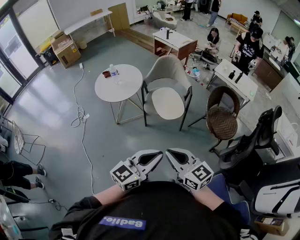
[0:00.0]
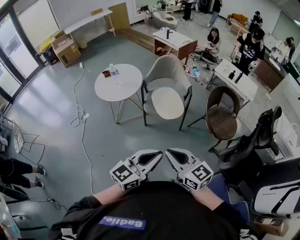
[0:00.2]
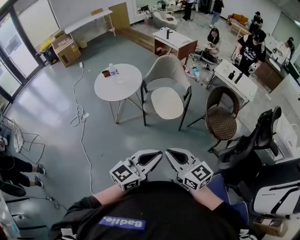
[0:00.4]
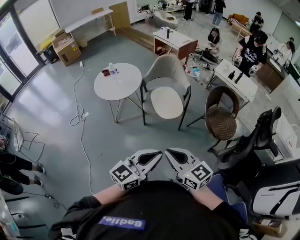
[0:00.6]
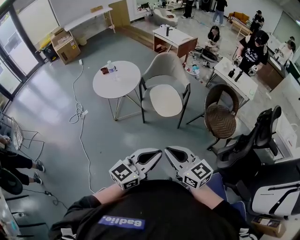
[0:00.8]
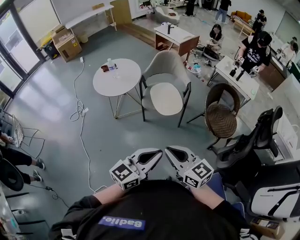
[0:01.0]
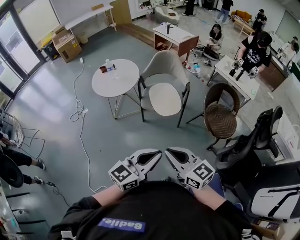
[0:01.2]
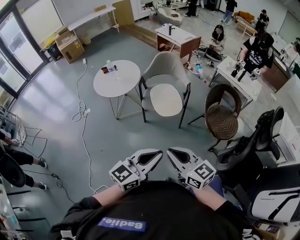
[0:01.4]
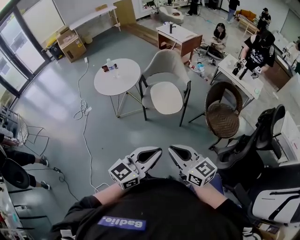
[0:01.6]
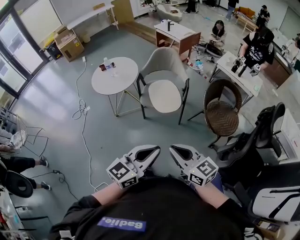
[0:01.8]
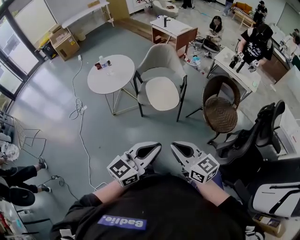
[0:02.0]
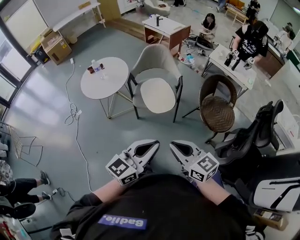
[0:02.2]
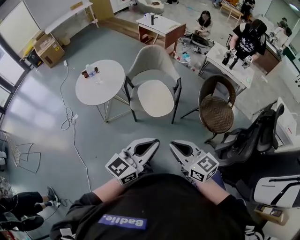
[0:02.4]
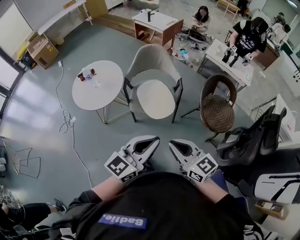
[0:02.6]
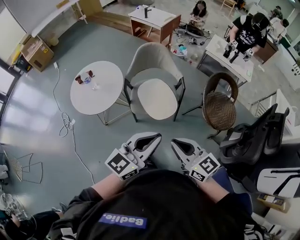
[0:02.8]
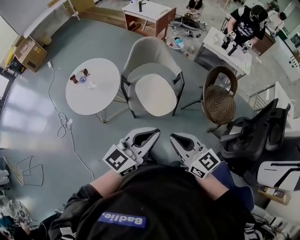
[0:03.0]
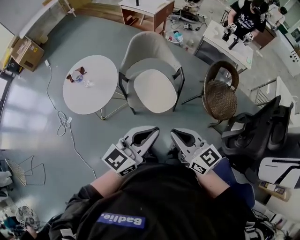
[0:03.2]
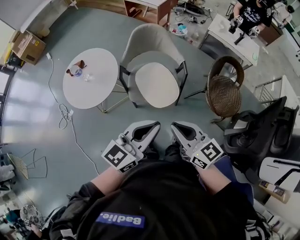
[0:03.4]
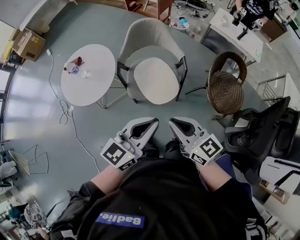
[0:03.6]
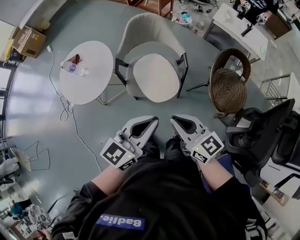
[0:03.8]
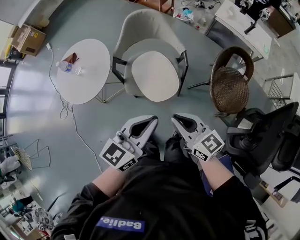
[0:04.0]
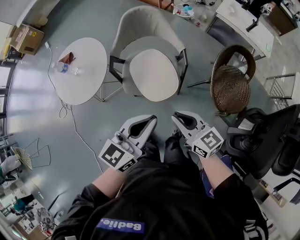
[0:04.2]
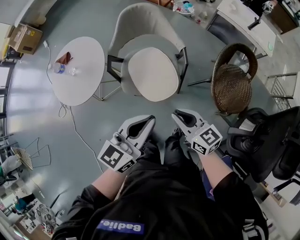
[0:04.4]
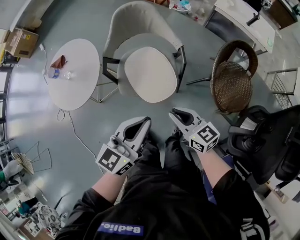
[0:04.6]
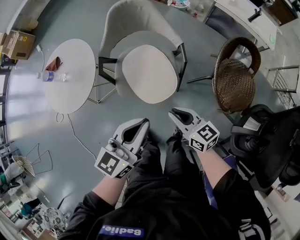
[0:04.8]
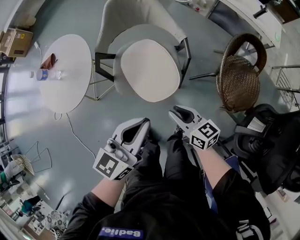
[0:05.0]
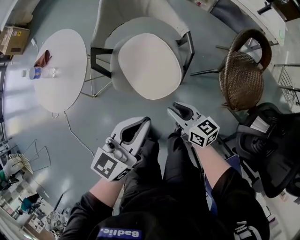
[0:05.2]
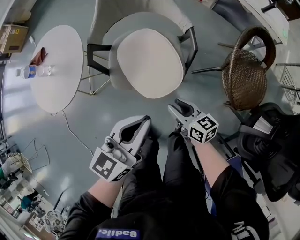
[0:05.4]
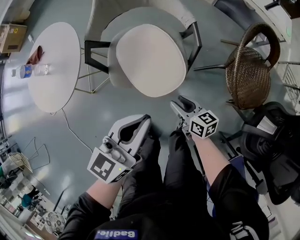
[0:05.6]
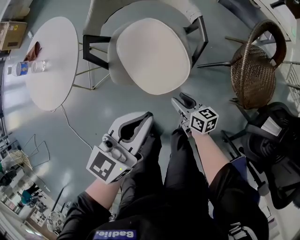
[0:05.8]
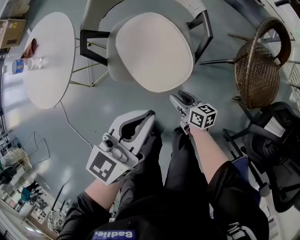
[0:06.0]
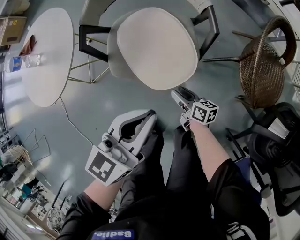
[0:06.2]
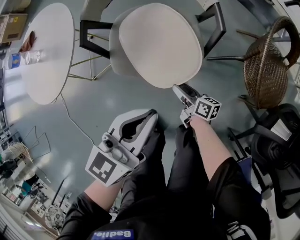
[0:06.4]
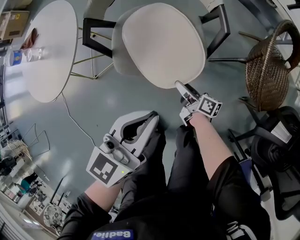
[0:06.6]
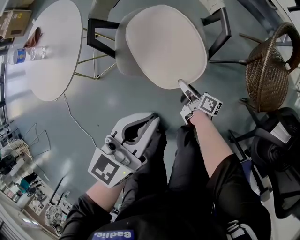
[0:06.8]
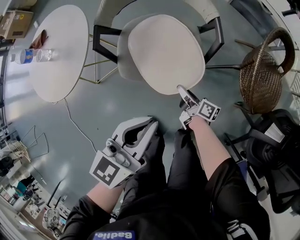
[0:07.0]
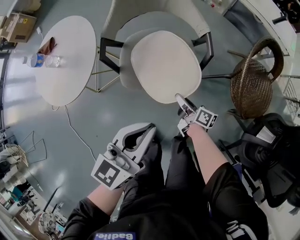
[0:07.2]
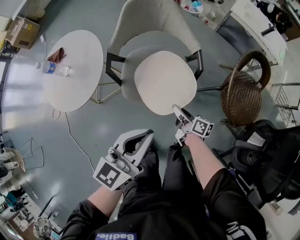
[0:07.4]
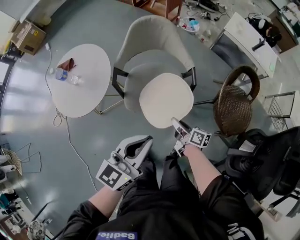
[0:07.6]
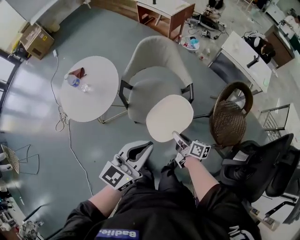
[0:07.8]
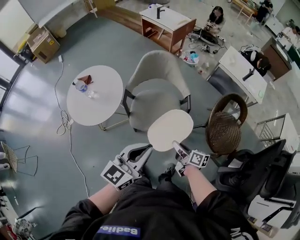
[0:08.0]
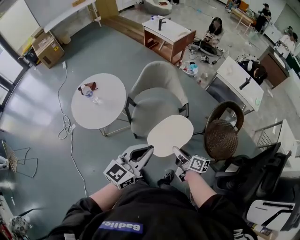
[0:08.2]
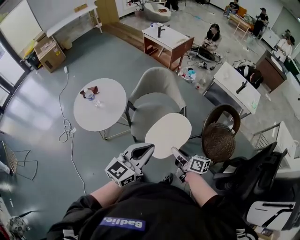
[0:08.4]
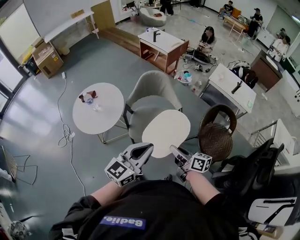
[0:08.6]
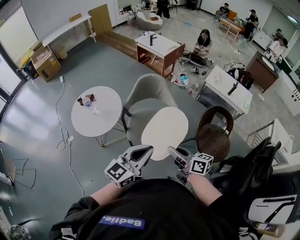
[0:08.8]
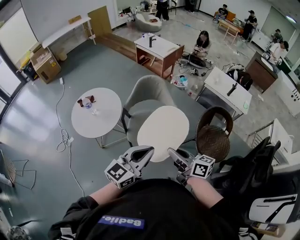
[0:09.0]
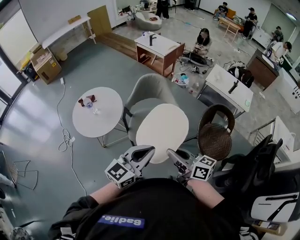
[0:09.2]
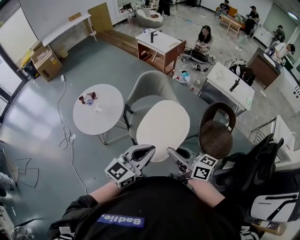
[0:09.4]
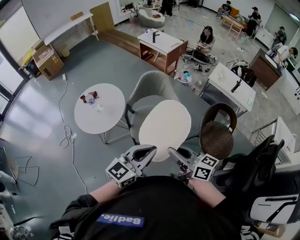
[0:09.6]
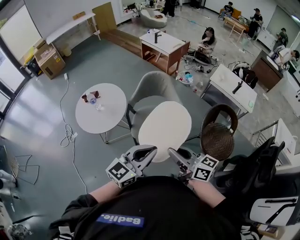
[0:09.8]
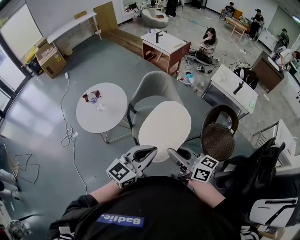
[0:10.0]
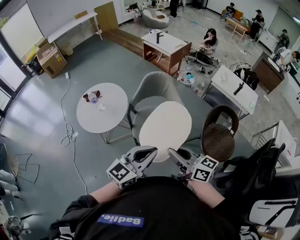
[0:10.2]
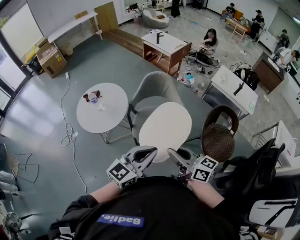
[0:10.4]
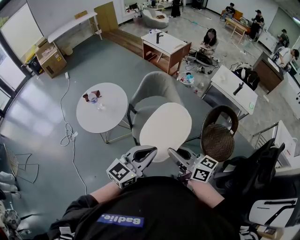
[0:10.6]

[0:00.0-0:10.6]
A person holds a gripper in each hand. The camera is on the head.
0:00.0 to 0:01.6: Both grippers travel together to the right, approximately 10 cm.
0:01.6 to 0:03.0: The two grippers go some 25 cm forward.
0:03.0 to 0:04.6: The two grippers go about 25 cm downward, forward and to the right.
0:04.6 to 0:06.0: The left gripper goes roughly 15 cm downward, while the right gripper travels downward by some 35 cm, rotates approximately 30 degrees, and opens its fingers.
0:06.0 to 0:07.6: Both grippers move upward, approximately 15 cm. The right gripper closes its fingers.
0:07.6 to 0:09.0: The left gripper goes about 15 cm upward and backward. Meanwhile the right gripper heads upward, covering approximately 35 cm, and rotates roughly 30 degrees.
0:09.0 to 0:10.6: The grippers move only a little.

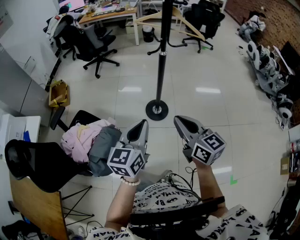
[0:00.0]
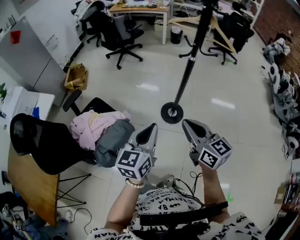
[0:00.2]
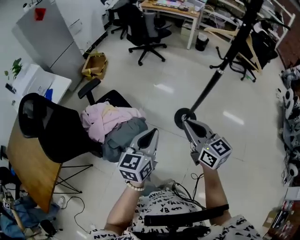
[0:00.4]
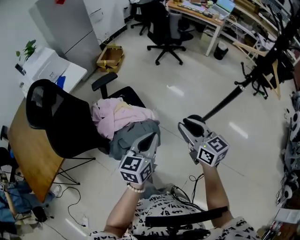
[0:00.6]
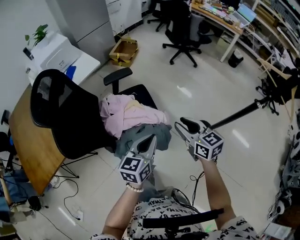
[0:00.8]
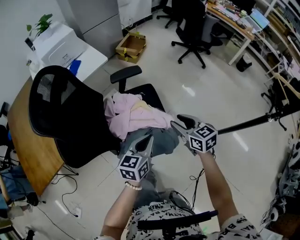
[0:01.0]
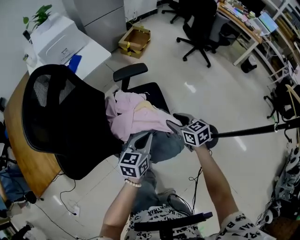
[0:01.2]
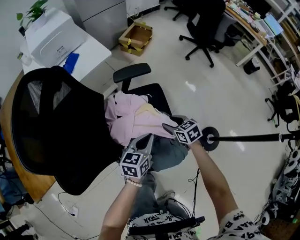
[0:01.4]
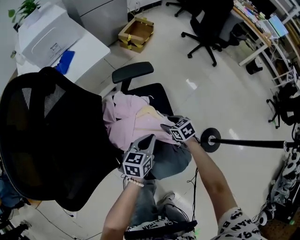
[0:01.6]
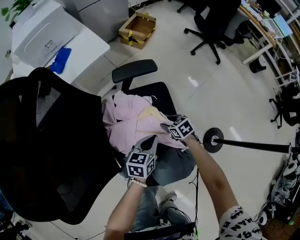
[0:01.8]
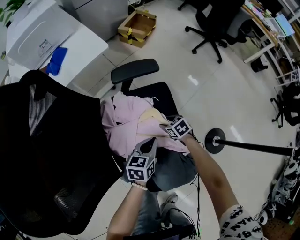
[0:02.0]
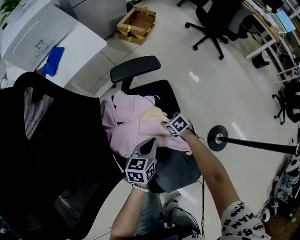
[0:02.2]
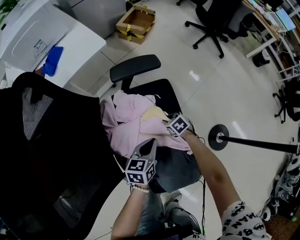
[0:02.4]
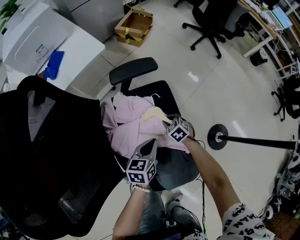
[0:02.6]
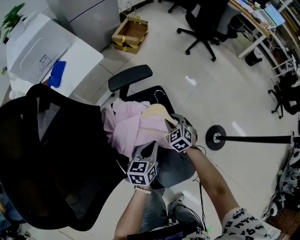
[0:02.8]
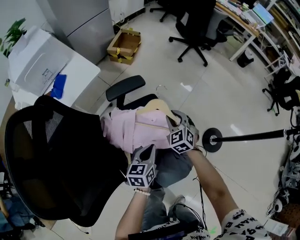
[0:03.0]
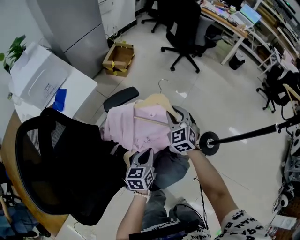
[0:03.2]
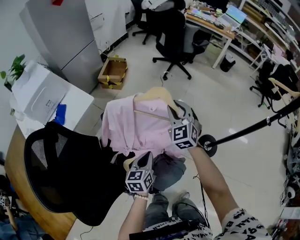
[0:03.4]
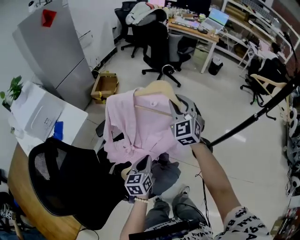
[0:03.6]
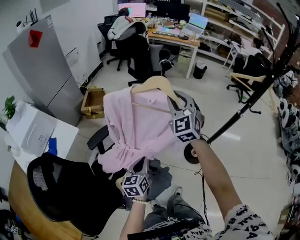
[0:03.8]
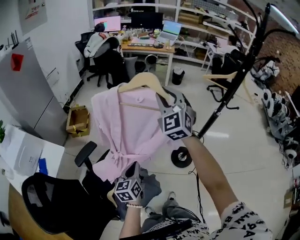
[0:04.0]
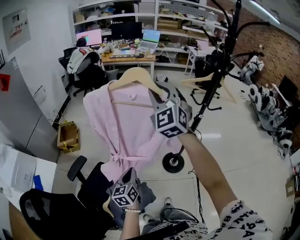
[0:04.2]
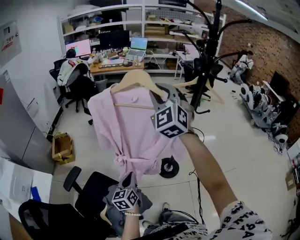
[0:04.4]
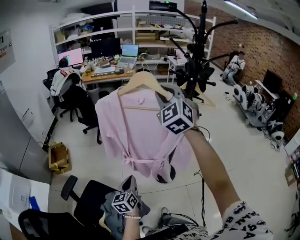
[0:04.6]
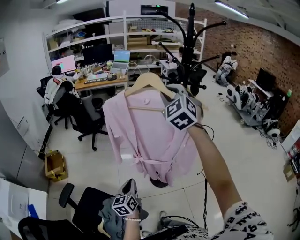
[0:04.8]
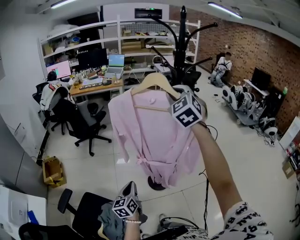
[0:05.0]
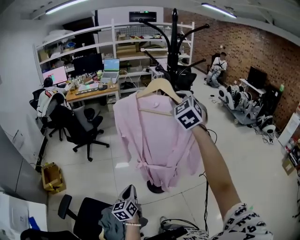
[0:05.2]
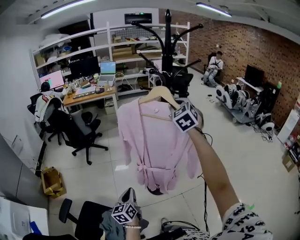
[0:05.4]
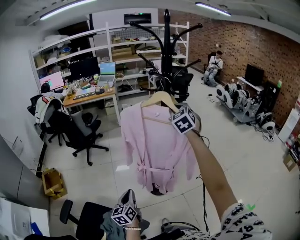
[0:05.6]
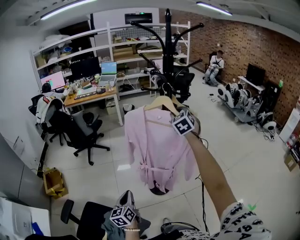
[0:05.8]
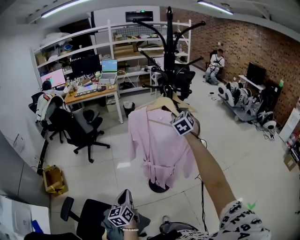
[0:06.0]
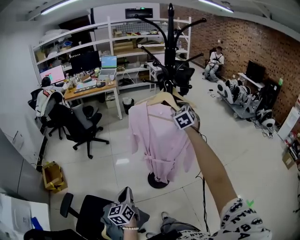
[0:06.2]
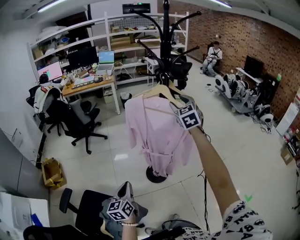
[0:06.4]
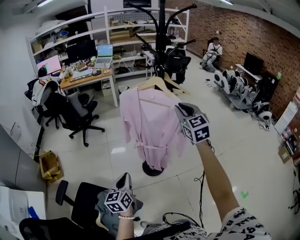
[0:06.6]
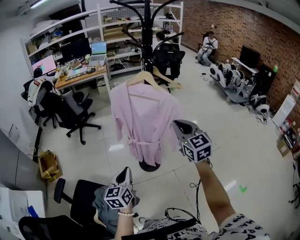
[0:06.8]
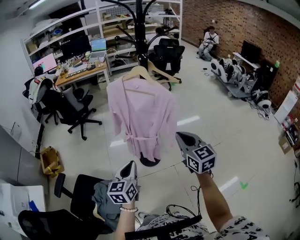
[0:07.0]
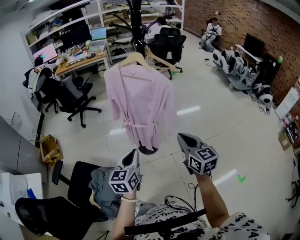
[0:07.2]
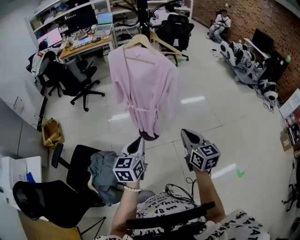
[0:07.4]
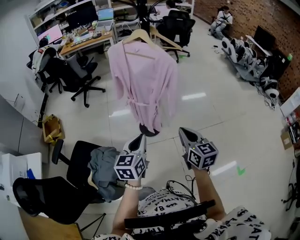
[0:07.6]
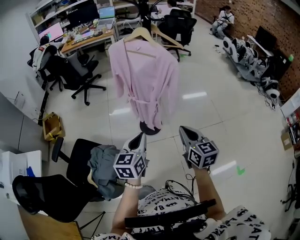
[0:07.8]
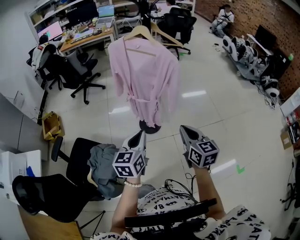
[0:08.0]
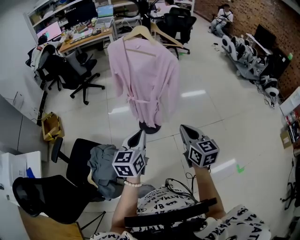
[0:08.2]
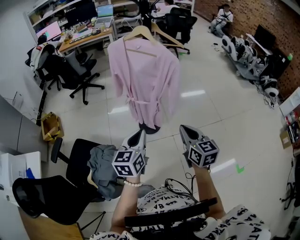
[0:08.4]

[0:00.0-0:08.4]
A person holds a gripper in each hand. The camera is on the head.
0:00.0 to 0:01.4: The two grippers travel together, some 50 cm. The right gripper points its fingers about 40 degrees further downward, and opens; the left gripper changes its angle by some 40 degrees.
0:01.4 to 0:02.8: The right gripper reaches some 25 cm downward, then returns, rotates roughly 30 degrees, and closes up, while the left gripper heads downward, covering roughly 10 cm.
0:02.8 to 0:04.2: The left gripper shifts roughly 25 cm upward, and rotates some 30 degrees. Meanwhile the right gripper shifts some 70 cm upward, and tilts its fingers roughly 50 degrees upward.
0:04.2 to 0:05.6: The left gripper is displaced to the right and forward by about 15 cm; the right gripper is displaced to the right by some 35 cm, and swivels some 40 degrees.
0:05.6 to 0:07.0: The left gripper is displaced to the right, upward and backward by some 15 cm. Meanwhile the right gripper heads backward and downward, covering about 30 cm, changes its angle by roughly 40 degrees, and closes up.
0:07.0 to 0:08.4: The left gripper goes about 5 cm to the right; the right gripper shifts approximately 10 cm downward and backward.

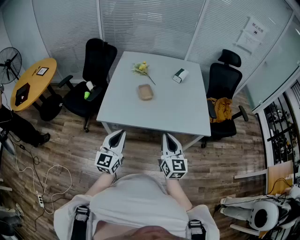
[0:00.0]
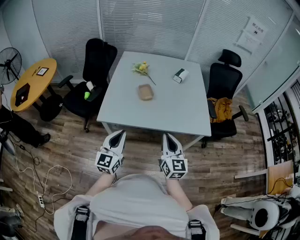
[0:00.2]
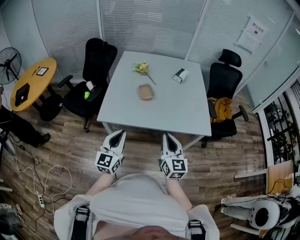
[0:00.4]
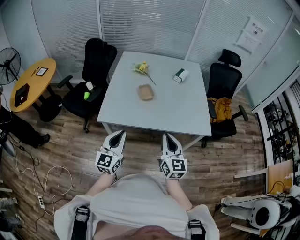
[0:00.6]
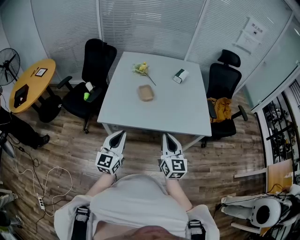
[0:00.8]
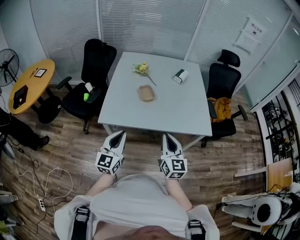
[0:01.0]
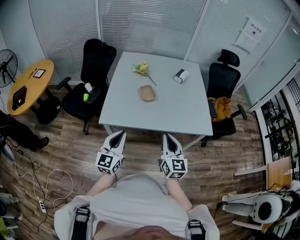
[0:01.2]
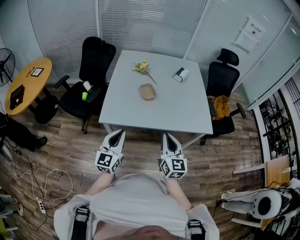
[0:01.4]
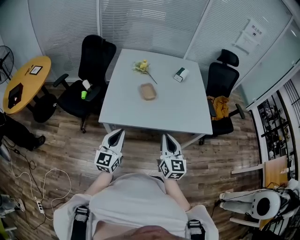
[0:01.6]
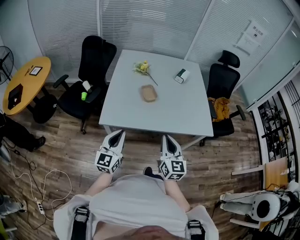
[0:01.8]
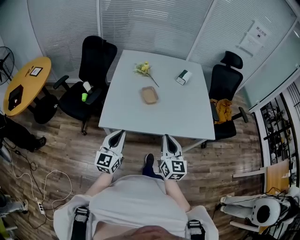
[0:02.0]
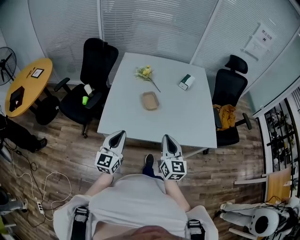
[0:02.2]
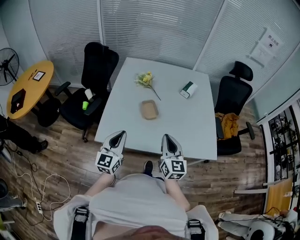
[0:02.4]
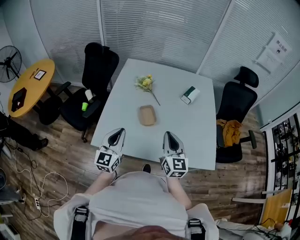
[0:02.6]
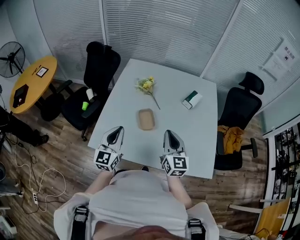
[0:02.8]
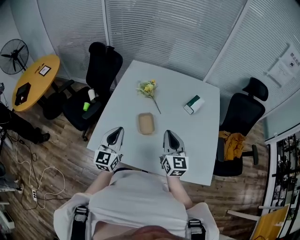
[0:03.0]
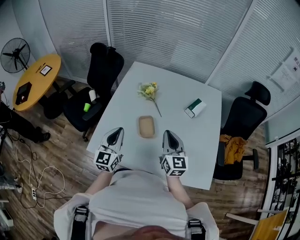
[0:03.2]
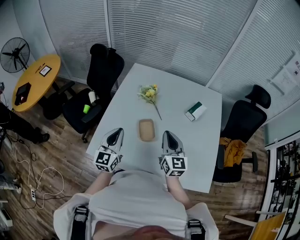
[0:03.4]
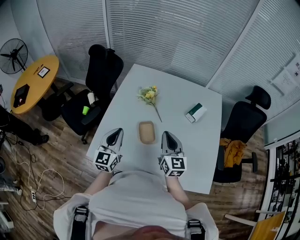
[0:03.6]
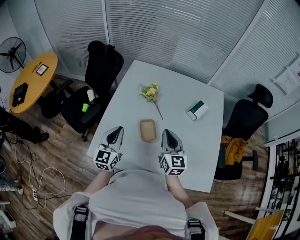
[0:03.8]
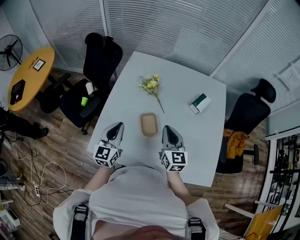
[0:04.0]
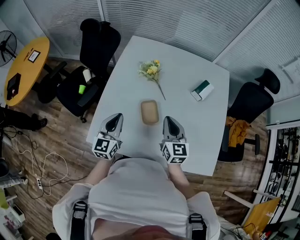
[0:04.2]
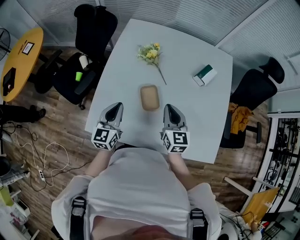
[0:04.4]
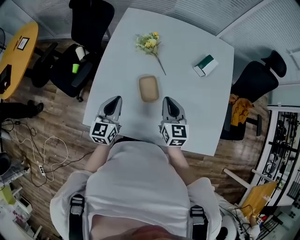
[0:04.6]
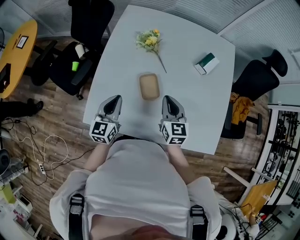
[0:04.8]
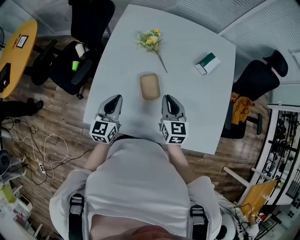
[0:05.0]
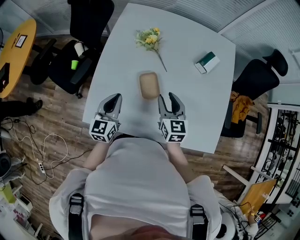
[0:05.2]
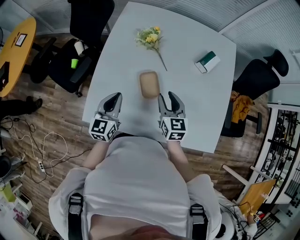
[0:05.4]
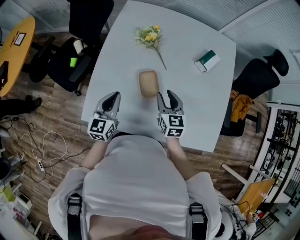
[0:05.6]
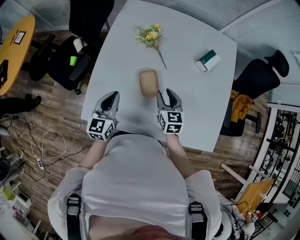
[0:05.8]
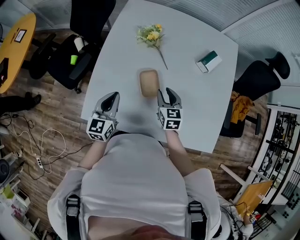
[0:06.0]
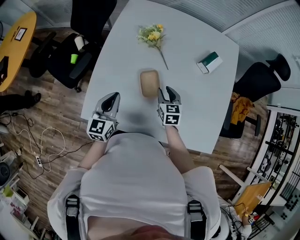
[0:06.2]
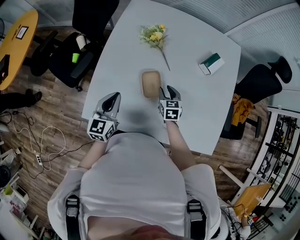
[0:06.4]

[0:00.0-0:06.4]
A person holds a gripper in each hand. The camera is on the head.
0:00.0 to 0:01.6: Both grippers move to the left, about 5 cm.
0:01.6 to 0:03.2: Both grippers move forward, about 35 cm.
0:03.2 to 0:04.8: The two grippers go about 10 cm downward and forward.
0:04.8 to 0:06.4: The right gripper shifts roughly 15 cm downward and forward, and opens its fingers.
